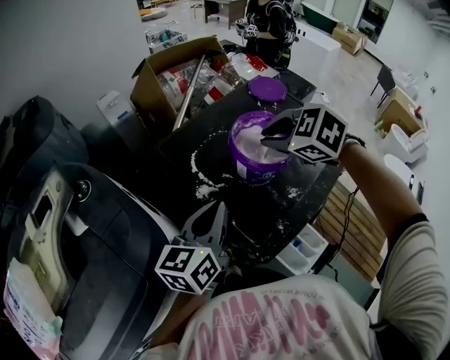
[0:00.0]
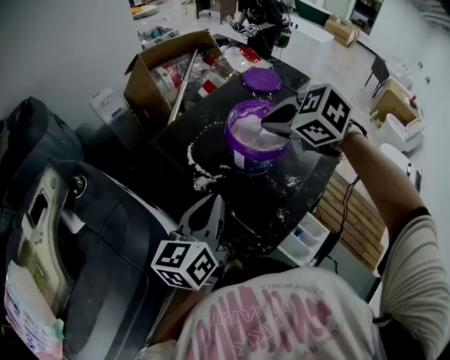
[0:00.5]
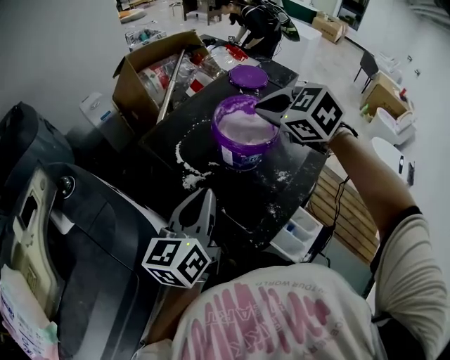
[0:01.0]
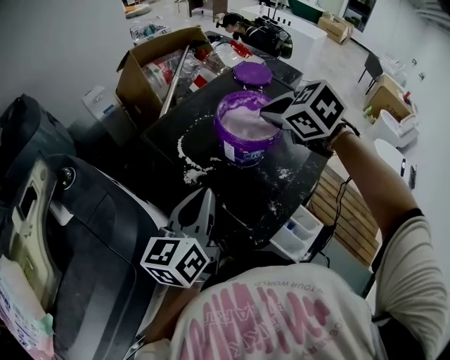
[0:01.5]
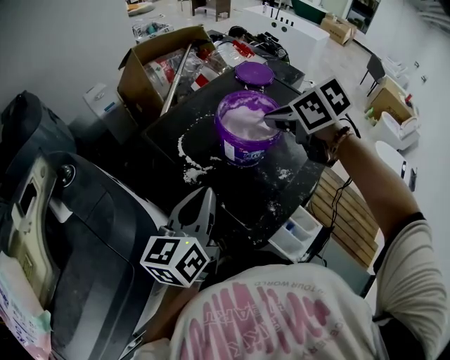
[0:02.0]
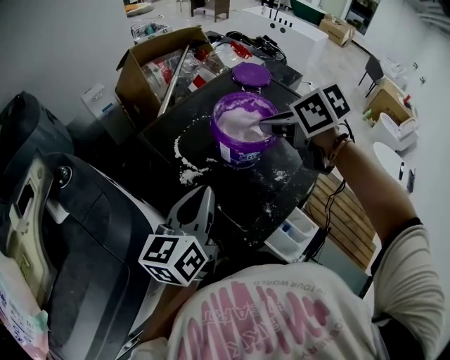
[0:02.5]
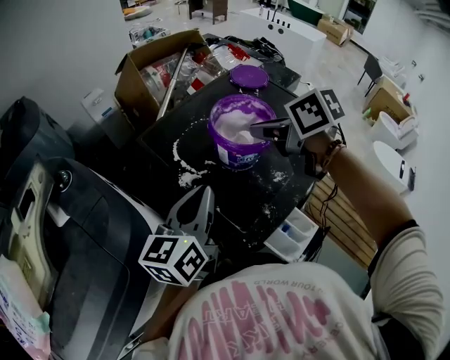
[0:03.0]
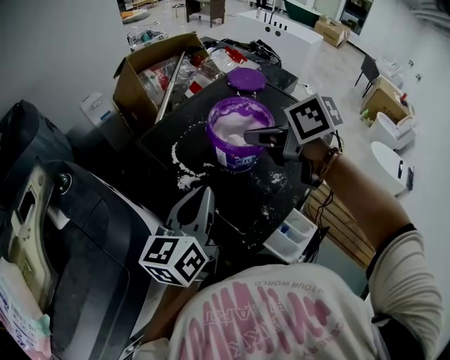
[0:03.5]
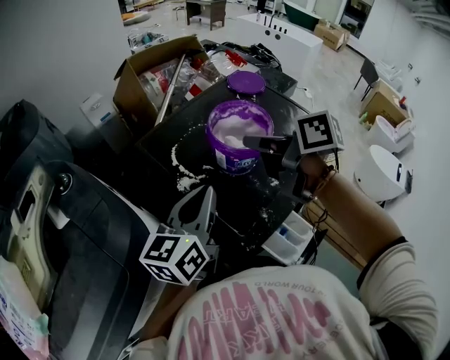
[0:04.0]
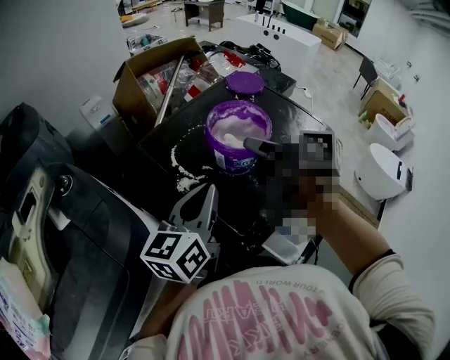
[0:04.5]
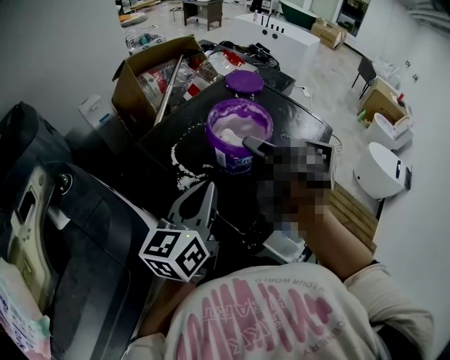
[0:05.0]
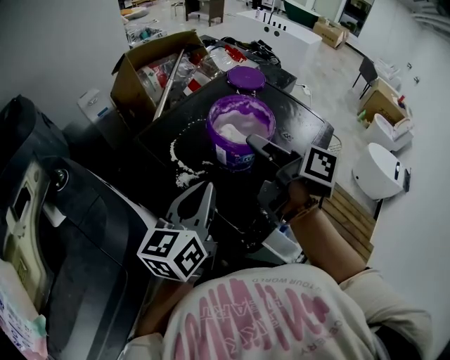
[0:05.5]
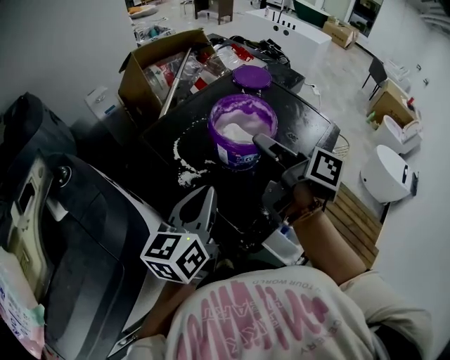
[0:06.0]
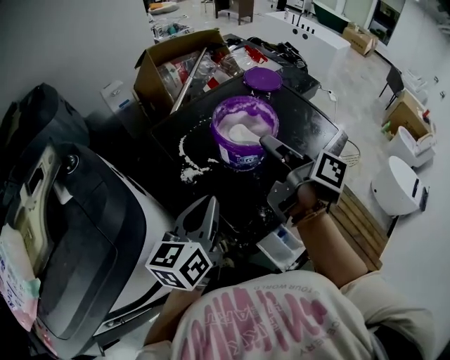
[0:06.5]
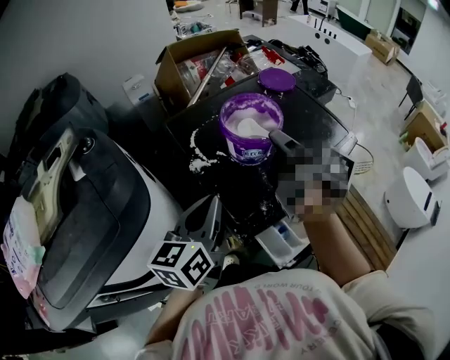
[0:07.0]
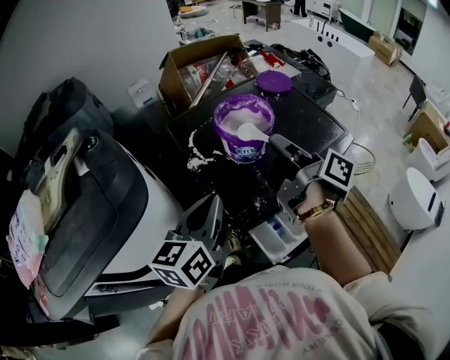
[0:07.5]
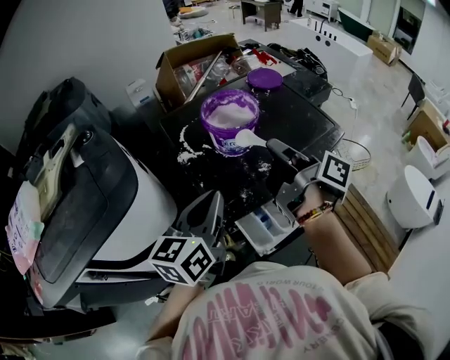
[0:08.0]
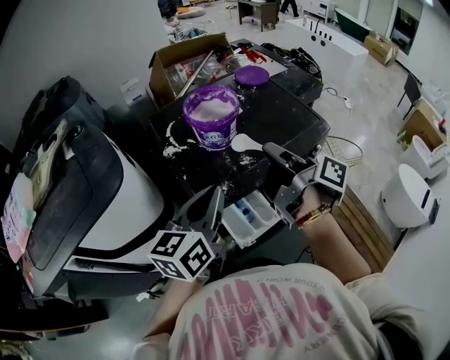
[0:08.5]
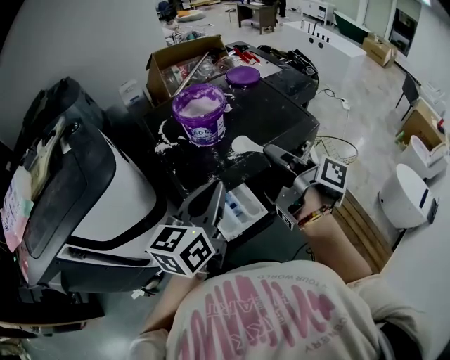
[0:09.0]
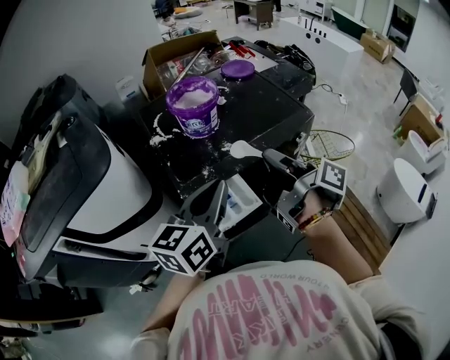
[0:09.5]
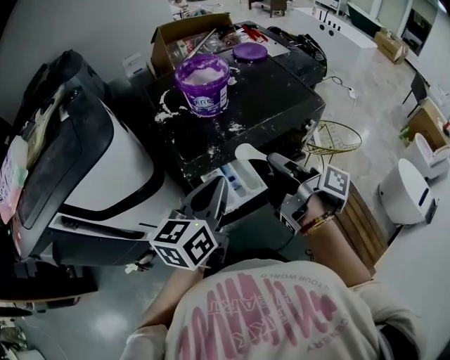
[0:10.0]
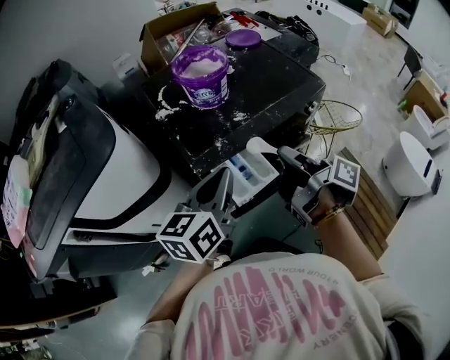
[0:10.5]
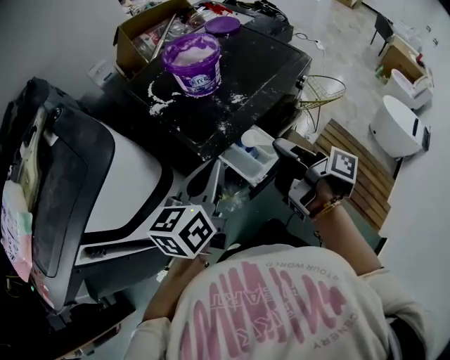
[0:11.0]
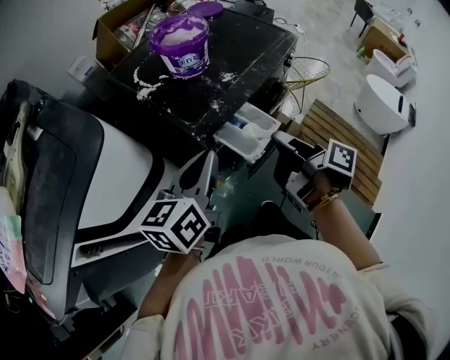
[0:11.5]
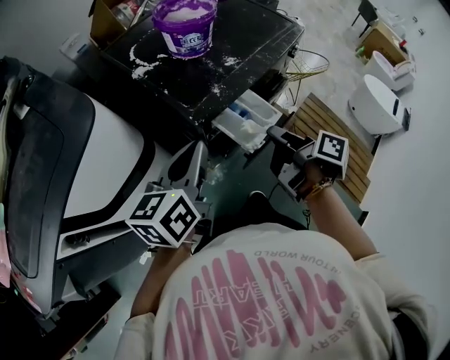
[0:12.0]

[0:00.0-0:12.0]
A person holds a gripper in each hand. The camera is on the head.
0:00.0 to 0:02.0: The right gripper rotates some 40 degrees.
0:02.0 to 0:04.0: The right gripper ends up some 5 cm from where it was, and rotates approximately 40 degrees.
0:04.0 to 0:06.0: The right gripper changes its angle by about 40 degrees.
0:06.0 to 0:08.0: The left gripper travels backward and to the right by roughly 15 cm, while the right gripper moves to the right and backward, roughly 10 cm.
0:08.0 to 0:10.0: The right gripper is displaced backward, to the right and downward by some 20 cm; the left gripper goes roughly 15 cm to the right and backward.
0:10.0 to 0:12.0: The right gripper is displaced downward, backward and to the left by some 15 cm, and rotates about 30 degrees. Meanwhile the left gripper travels to the left by about 15 cm.

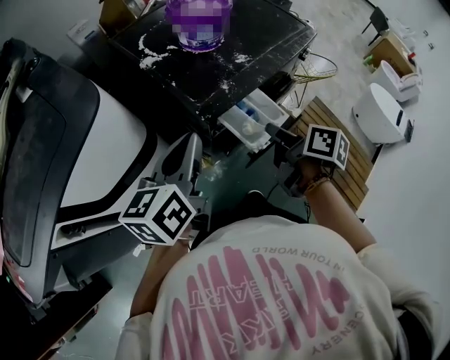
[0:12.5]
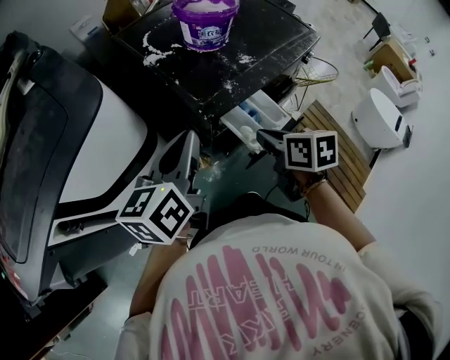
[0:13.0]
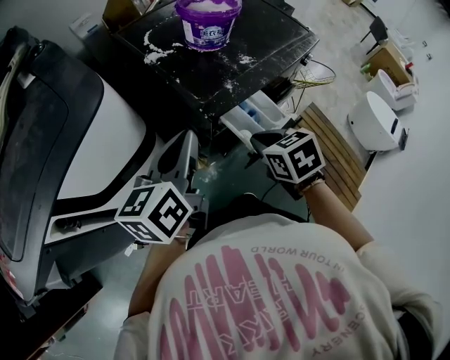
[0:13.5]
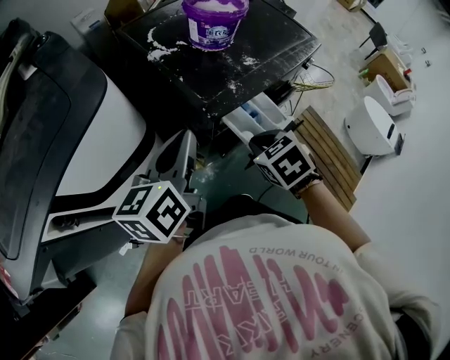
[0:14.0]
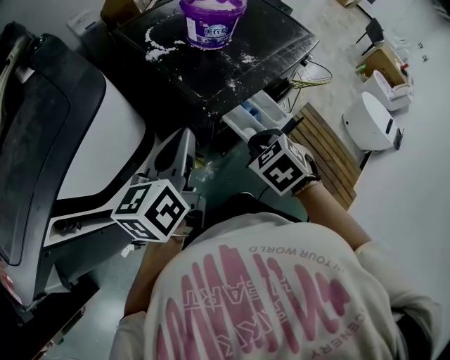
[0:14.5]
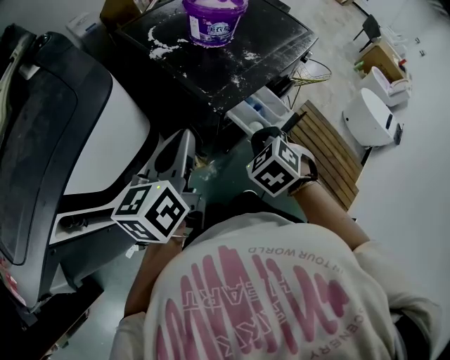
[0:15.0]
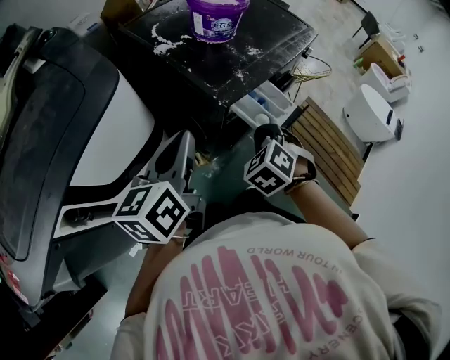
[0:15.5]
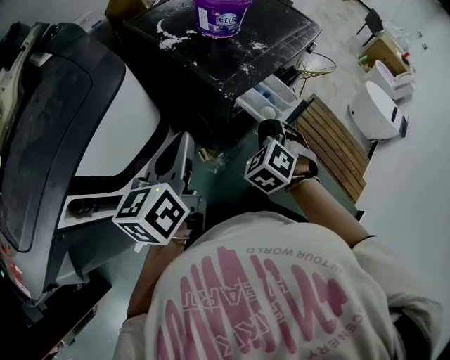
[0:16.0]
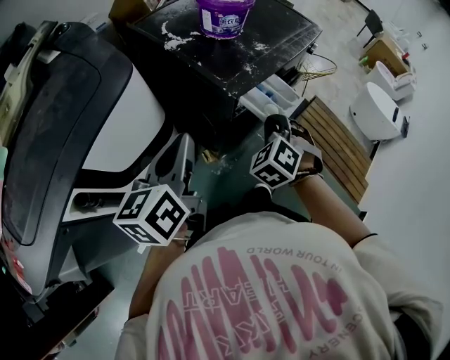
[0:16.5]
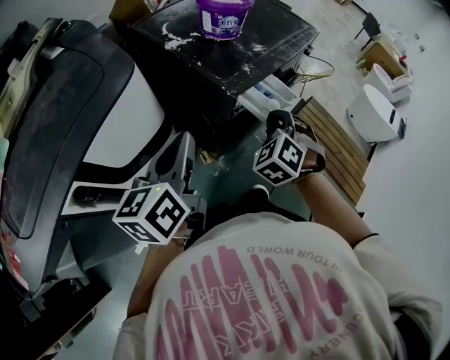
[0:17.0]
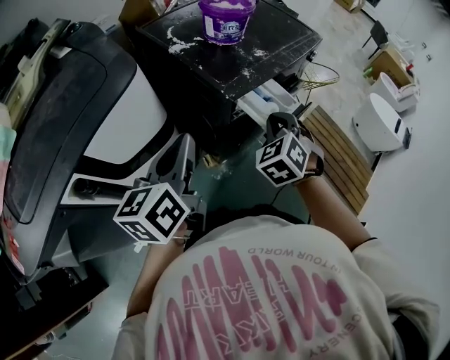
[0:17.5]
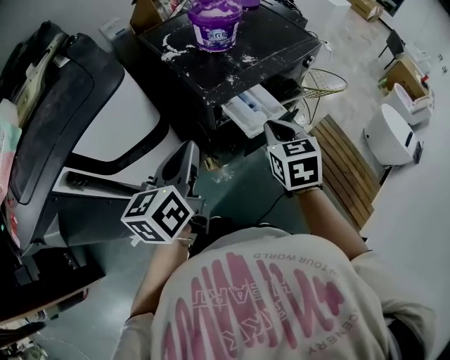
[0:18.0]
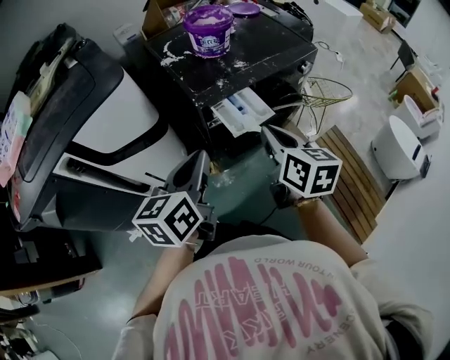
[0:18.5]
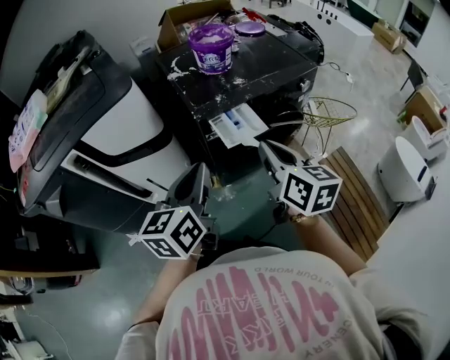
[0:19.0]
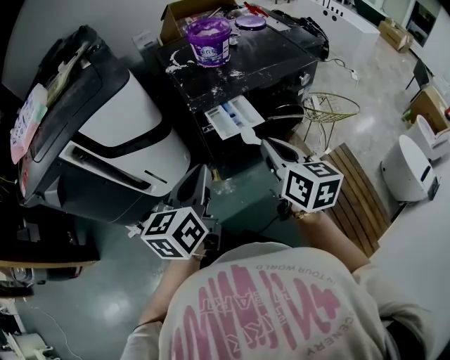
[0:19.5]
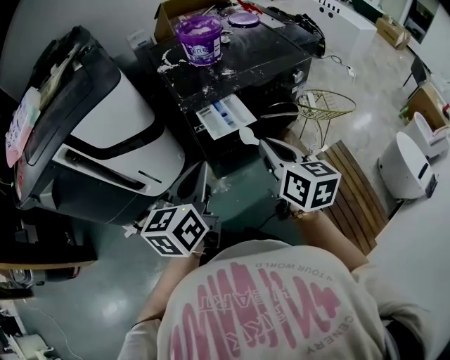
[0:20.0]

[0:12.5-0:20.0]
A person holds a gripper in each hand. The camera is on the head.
0:12.5 to 0:14.5: The right gripper is displaced to the left by roughly 5 cm, and rolls counterclockwise, seen from behind, by about 80 degrees.
0:14.5 to 0:16.5: The right gripper swivels some 30 degrees, while the left gripper moves backward, about 10 cm.
0:16.5 to 0:18.0: The left gripper shifts roughly 10 cm to the right; the right gripper is displaced upward and to the right by roughly 10 cm, and rotates around the line of its fingers by roughly 40 degrees, clockwise from behind.
0:18.0 to 0:20.0: The grippers both shift to the right and backward by some 15 cm. The right gripper changes its angle by approximately 30 degrees.

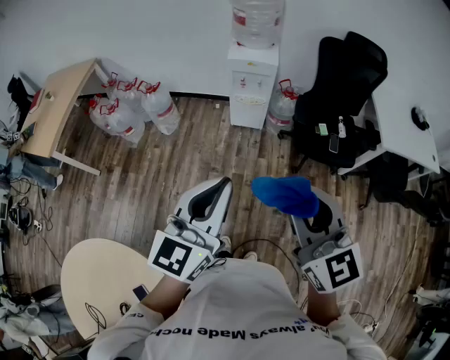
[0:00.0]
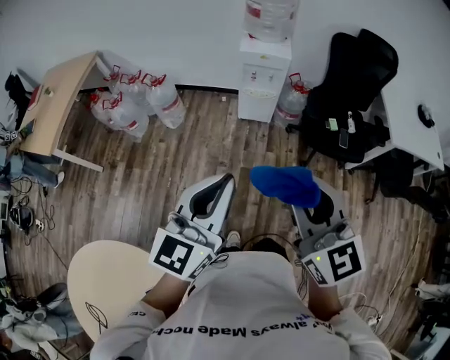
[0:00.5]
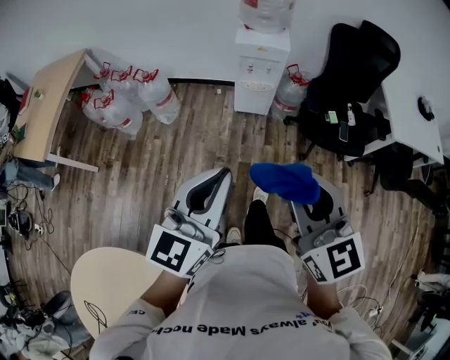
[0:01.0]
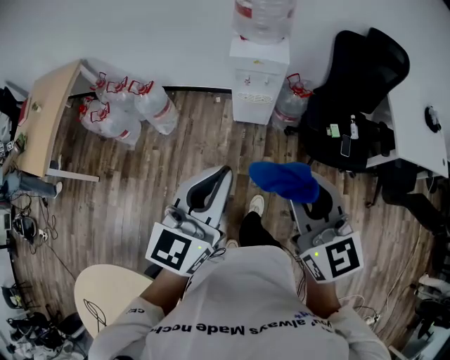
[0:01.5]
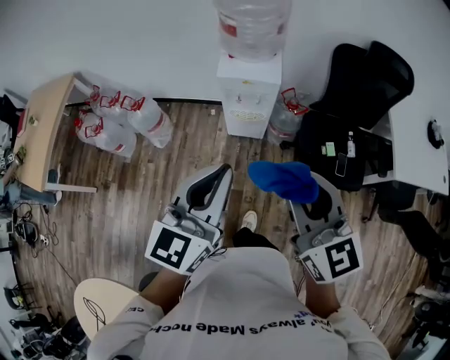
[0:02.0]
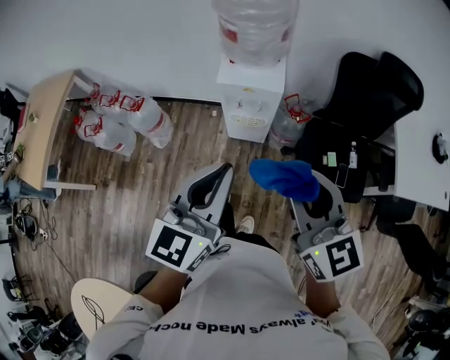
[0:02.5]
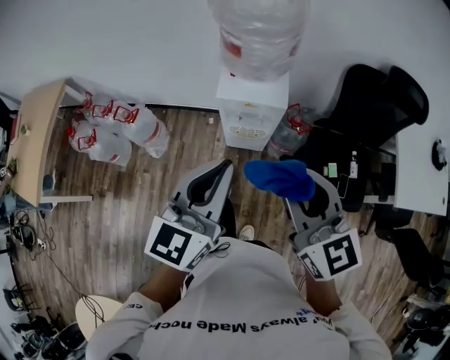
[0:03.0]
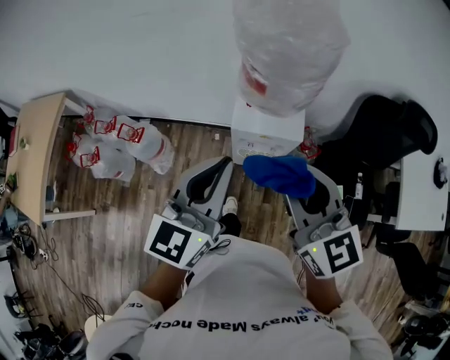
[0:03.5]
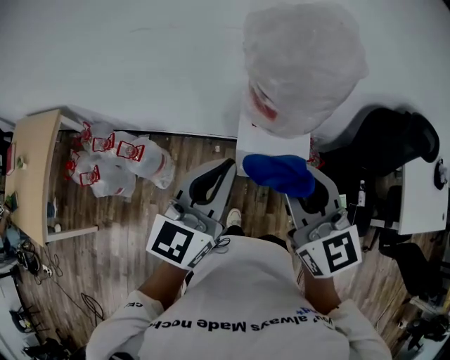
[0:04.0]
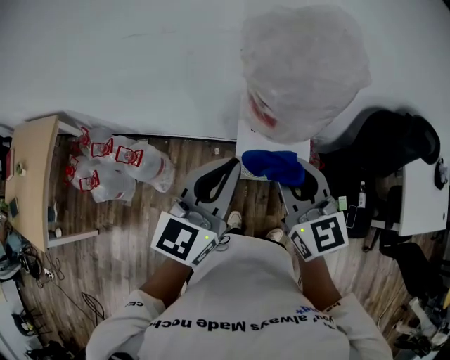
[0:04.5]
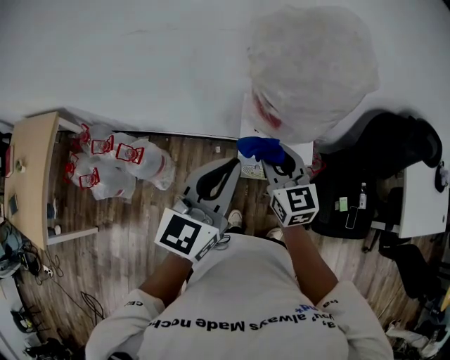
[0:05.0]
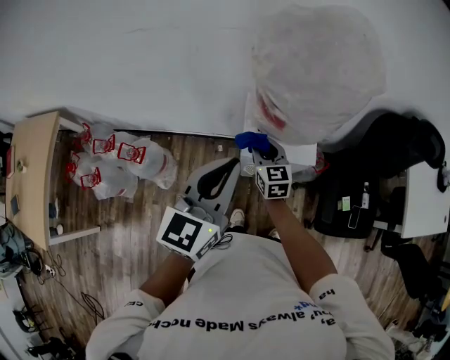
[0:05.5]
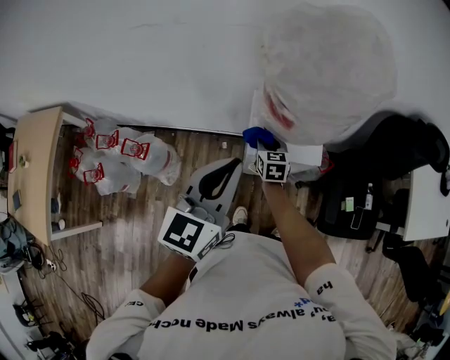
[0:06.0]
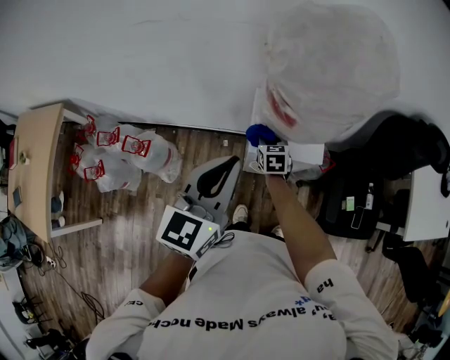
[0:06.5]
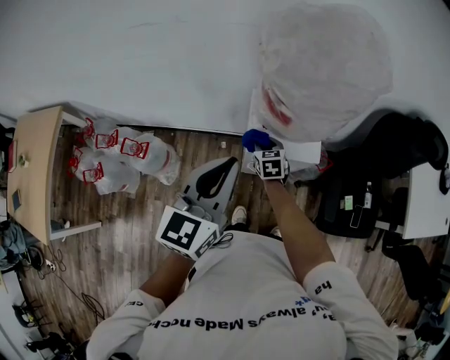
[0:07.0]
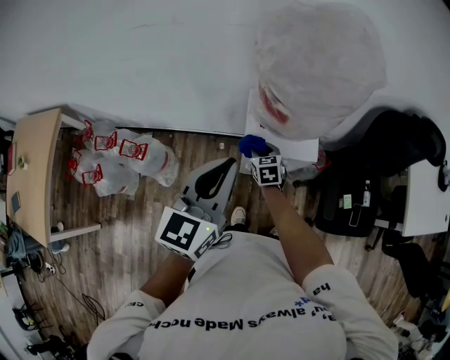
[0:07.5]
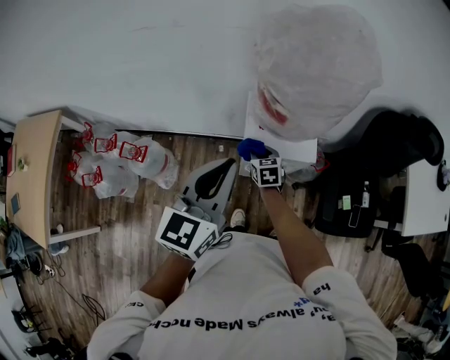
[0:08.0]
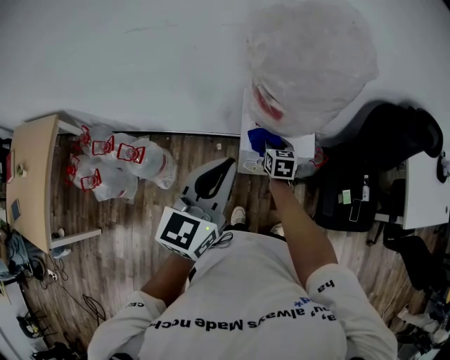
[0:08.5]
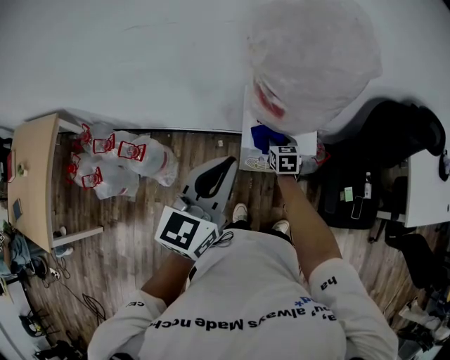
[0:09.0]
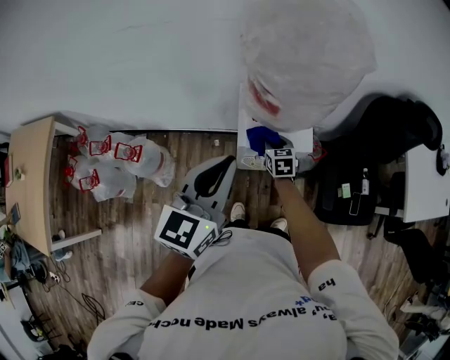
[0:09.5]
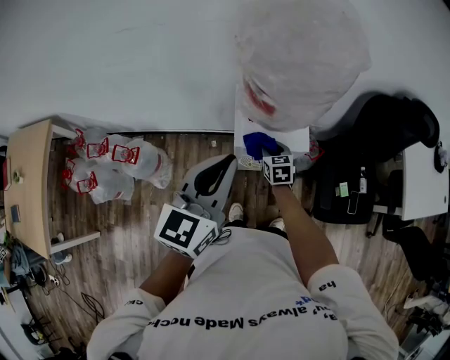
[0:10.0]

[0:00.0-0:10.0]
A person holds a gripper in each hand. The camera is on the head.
0:00.0 to 0:02.0: Both grippers move forward, some 30 cm.
0:02.0 to 0:04.0: Both grippers move forward, approximately 35 cm.
0:04.0 to 0:06.0: The right gripper shifts some 40 cm downward and forward, and rotates about 30 degrees; the left gripper goes approximately 5 cm downward.
0:06.0 to 0:08.0: The right gripper moves approximately 5 cm.
0:08.0 to 0:10.0: The right gripper goes about 10 cm to the right.
